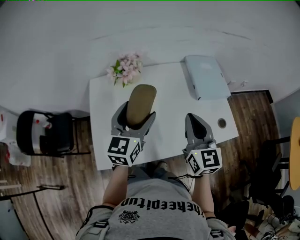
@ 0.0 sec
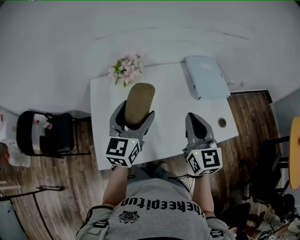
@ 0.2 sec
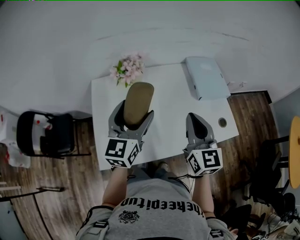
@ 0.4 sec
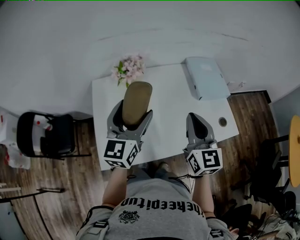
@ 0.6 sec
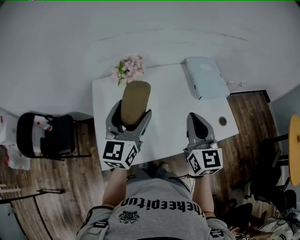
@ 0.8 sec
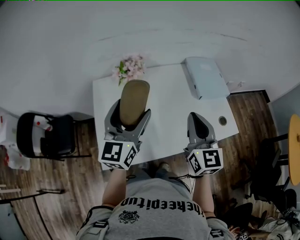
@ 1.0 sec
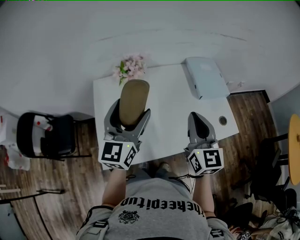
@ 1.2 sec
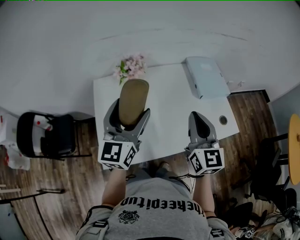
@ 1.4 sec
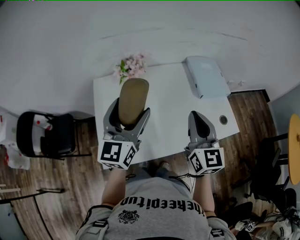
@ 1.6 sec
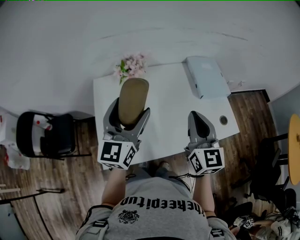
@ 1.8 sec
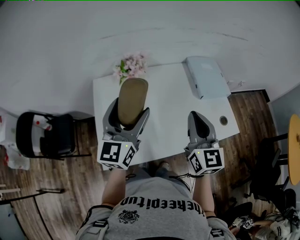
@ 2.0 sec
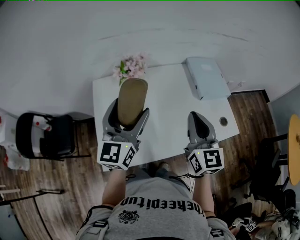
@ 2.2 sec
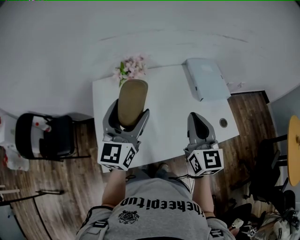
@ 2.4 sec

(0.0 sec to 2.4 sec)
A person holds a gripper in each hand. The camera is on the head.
0.0 sec - 1.2 sec: The left gripper moves upward and to the left, some 5 cm.
1.2 sec - 2.4 sec: The grippers move only a little.

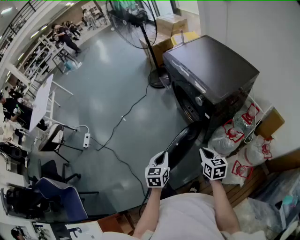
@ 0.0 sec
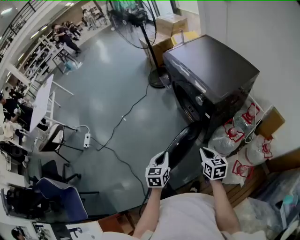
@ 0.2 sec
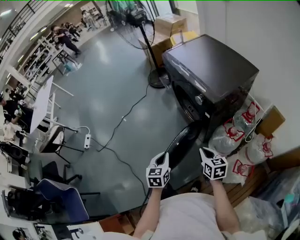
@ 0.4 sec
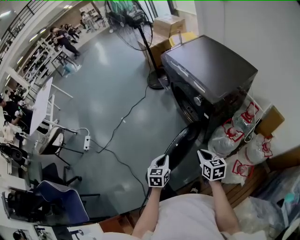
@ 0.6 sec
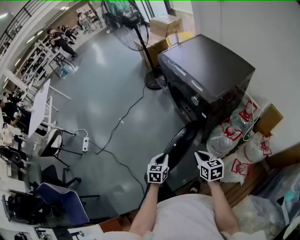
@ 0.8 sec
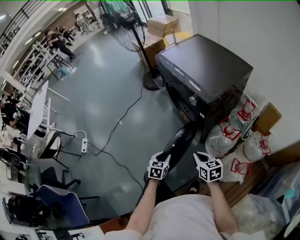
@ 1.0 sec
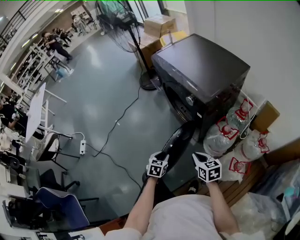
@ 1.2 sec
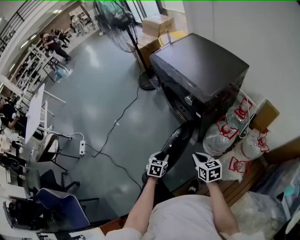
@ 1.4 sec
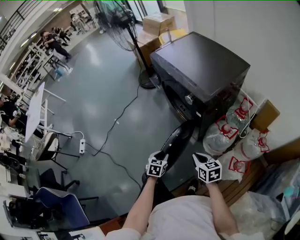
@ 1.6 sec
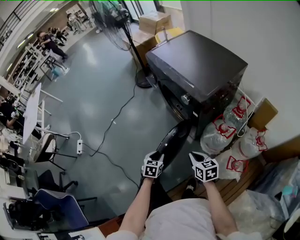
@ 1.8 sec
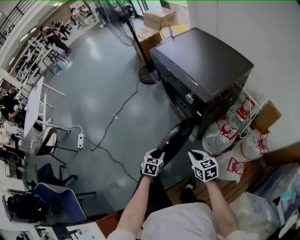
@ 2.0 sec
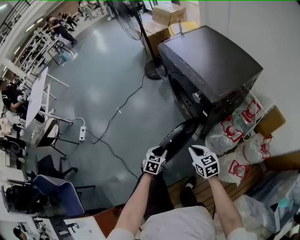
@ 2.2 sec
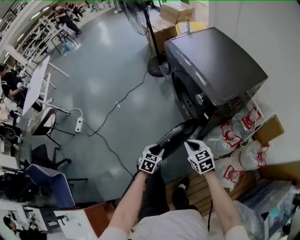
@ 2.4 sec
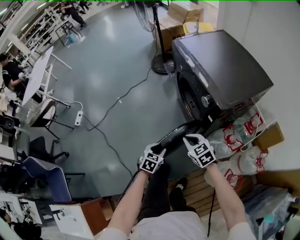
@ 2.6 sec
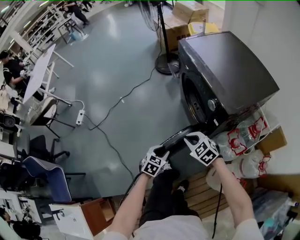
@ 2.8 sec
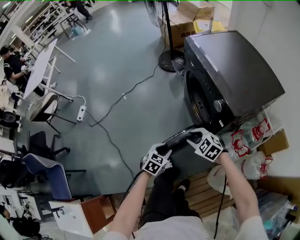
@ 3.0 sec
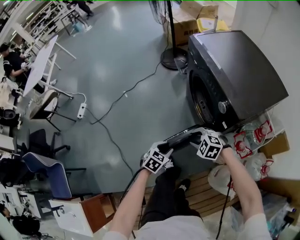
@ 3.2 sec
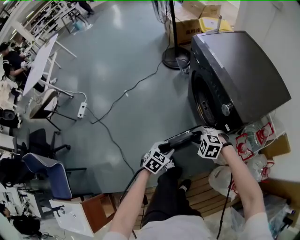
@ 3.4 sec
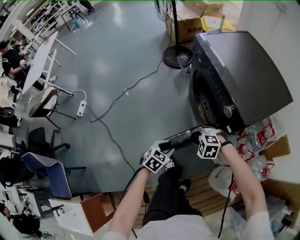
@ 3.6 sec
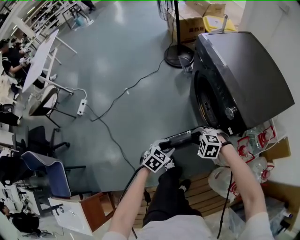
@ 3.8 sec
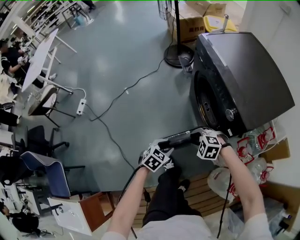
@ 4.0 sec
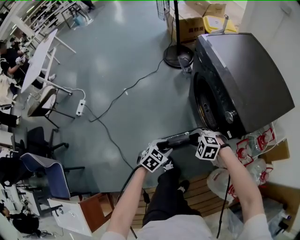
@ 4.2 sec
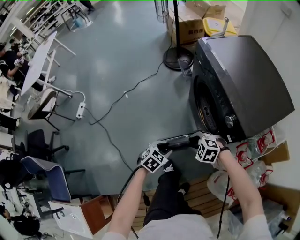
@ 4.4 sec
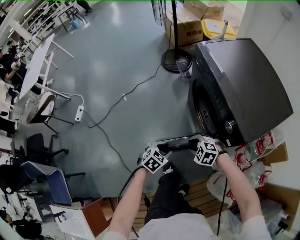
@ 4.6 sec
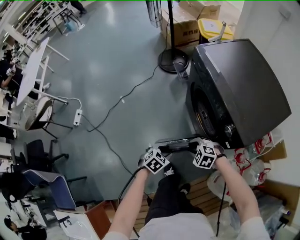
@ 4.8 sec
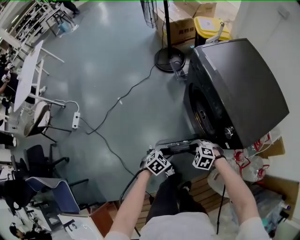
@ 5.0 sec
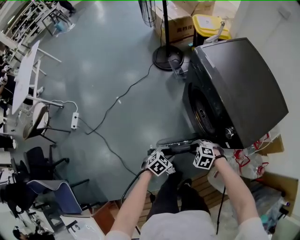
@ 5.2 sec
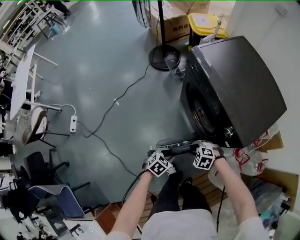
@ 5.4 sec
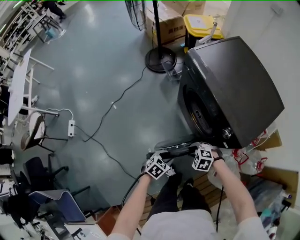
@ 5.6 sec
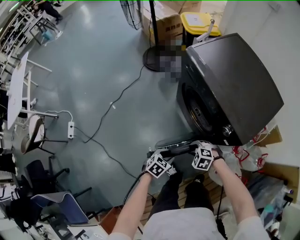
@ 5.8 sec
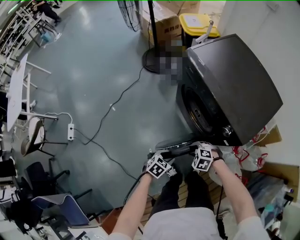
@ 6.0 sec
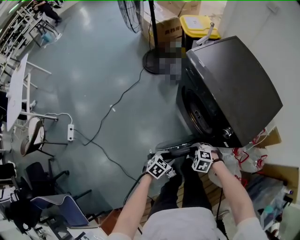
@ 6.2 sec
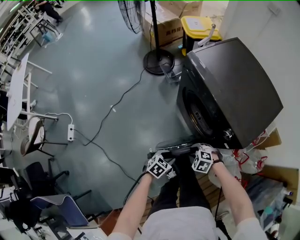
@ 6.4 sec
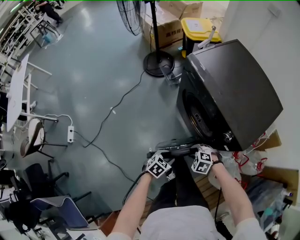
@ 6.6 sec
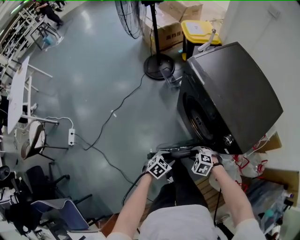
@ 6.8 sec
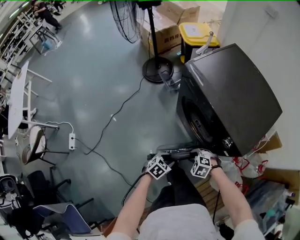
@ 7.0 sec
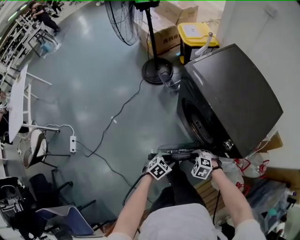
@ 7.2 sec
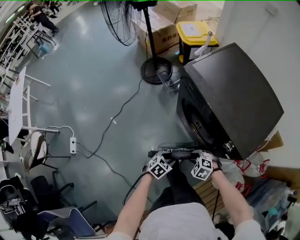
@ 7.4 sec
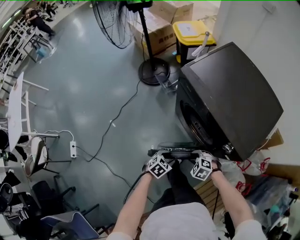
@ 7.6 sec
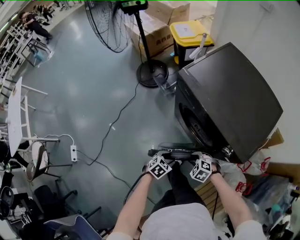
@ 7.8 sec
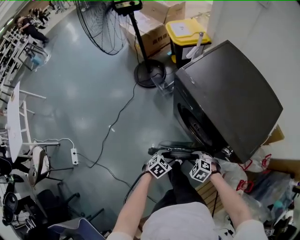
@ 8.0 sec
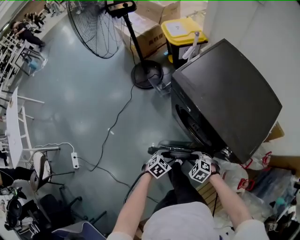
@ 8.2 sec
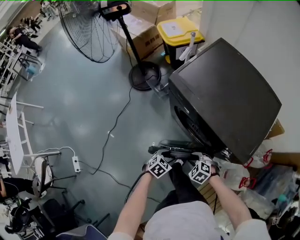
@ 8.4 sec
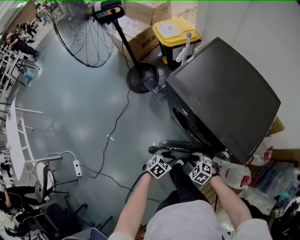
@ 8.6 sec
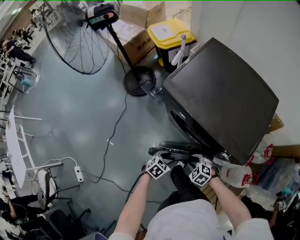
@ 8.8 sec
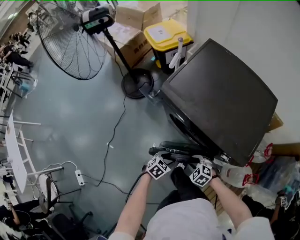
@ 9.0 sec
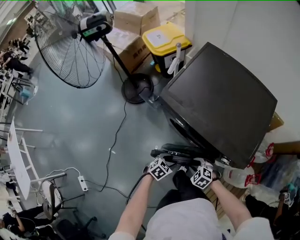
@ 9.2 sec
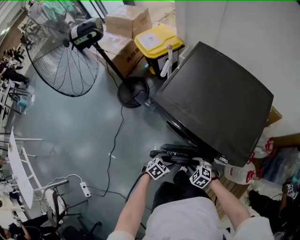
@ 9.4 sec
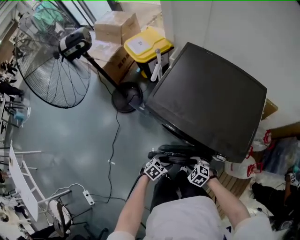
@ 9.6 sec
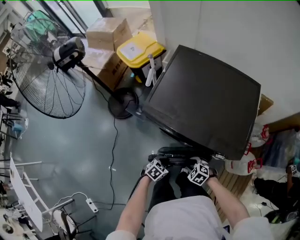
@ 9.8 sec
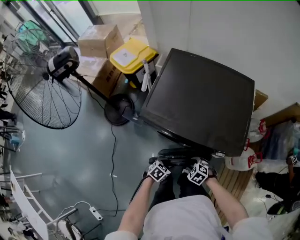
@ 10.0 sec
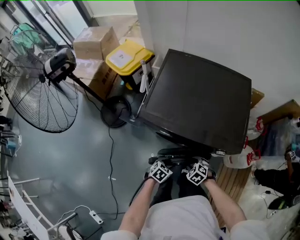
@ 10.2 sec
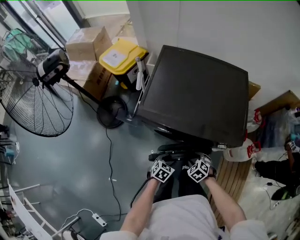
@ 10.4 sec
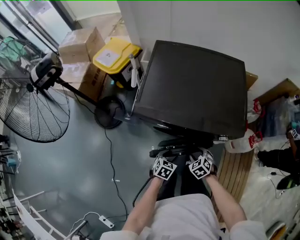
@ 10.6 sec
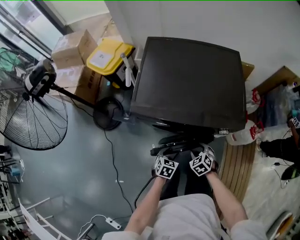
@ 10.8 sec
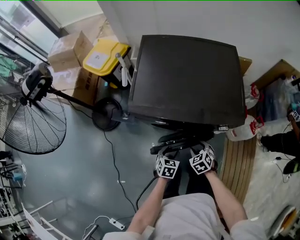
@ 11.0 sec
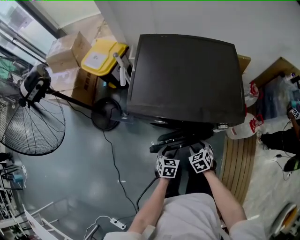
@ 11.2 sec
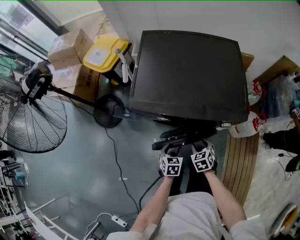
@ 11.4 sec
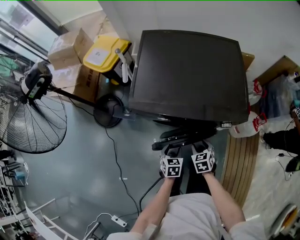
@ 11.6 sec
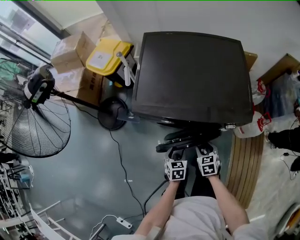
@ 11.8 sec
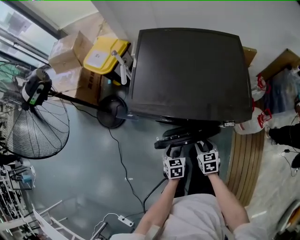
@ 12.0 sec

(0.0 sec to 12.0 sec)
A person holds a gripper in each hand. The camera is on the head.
0.0 sec - 1.6 sec: The left gripper shifts roughly 15 cm downward, turns by about 30 degrees, and opens its fingers.
1.6 sec - 3.0 sec: The right gripper goes approximately 15 cm forward and to the left, rolls counterclockwise, seen from behind, by some 60 degrees, and opens. The left gripper changes place by approximately 5 cm.
3.0 sec - 4.4 sec: The left gripper moves some 10 cm. The right gripper travels downward by some 5 cm, and rotates roughly 20 degrees.
4.4 sec - 6.0 sec: The grippers stay close to where they were, moving slightly.
6.0 sec - 7.6 sec: The right gripper shifts by roughly 10 cm. The left gripper changes place by some 10 cm.
7.6 sec - 9.0 sec: The right gripper shifts by approximately 10 cm, and rotates some 20 degrees, while the left gripper ends up some 10 cm from where it was.
9.0 sec - 10.4 sec: The left gripper moves about 5 cm, while the right gripper changes its angle by some 40 degrees.
10.4 sec - 12.0 sec: The right gripper rotates around the line of its fingers by about 40 degrees, clockwise from behind. Meanwhile the left gripper swivels approximately 30 degrees.

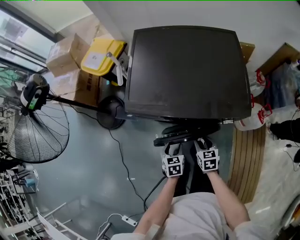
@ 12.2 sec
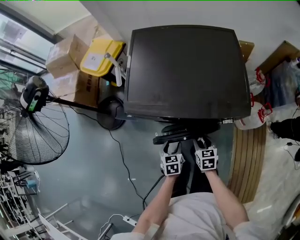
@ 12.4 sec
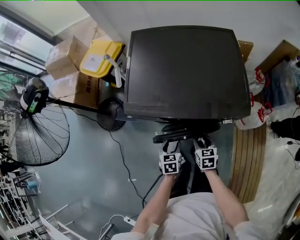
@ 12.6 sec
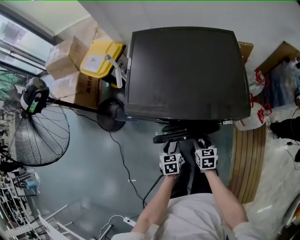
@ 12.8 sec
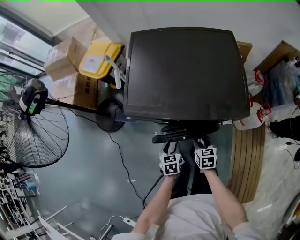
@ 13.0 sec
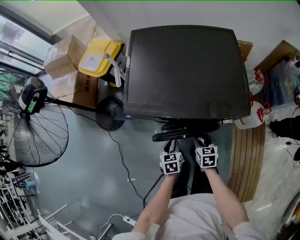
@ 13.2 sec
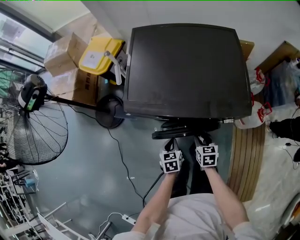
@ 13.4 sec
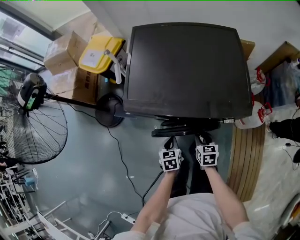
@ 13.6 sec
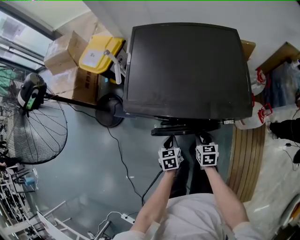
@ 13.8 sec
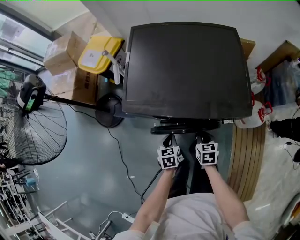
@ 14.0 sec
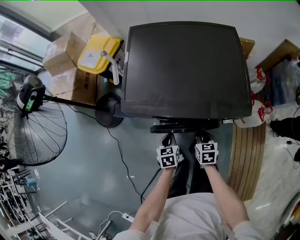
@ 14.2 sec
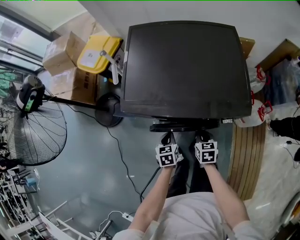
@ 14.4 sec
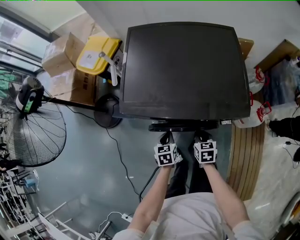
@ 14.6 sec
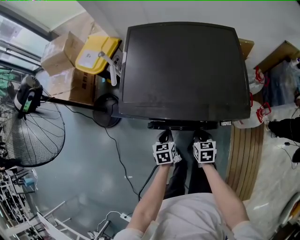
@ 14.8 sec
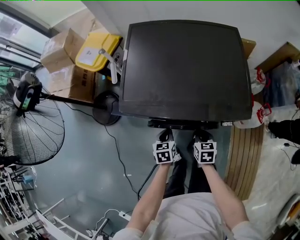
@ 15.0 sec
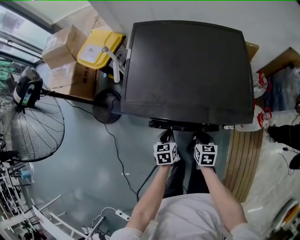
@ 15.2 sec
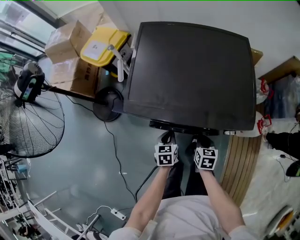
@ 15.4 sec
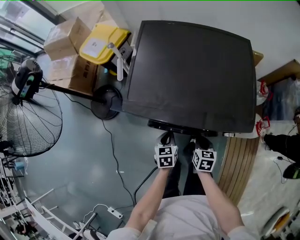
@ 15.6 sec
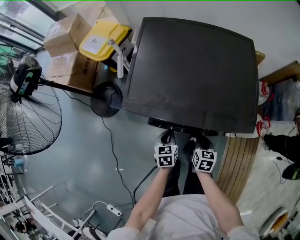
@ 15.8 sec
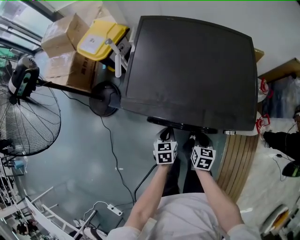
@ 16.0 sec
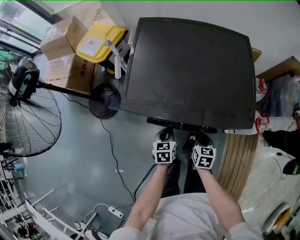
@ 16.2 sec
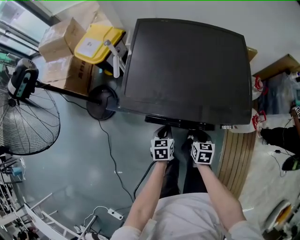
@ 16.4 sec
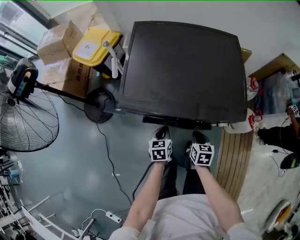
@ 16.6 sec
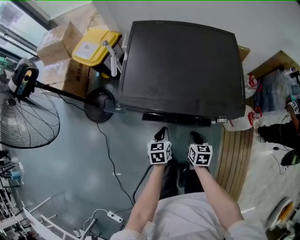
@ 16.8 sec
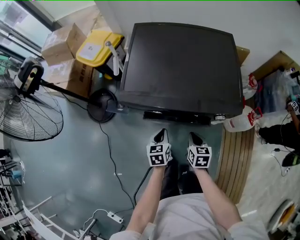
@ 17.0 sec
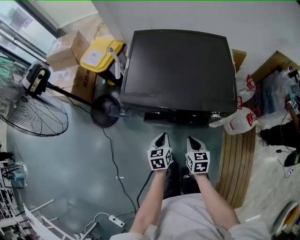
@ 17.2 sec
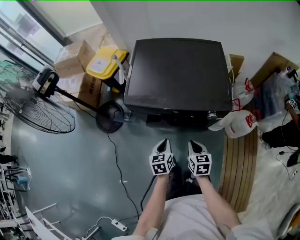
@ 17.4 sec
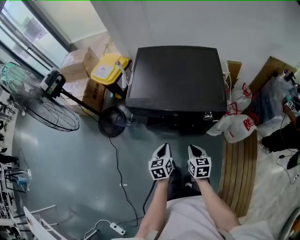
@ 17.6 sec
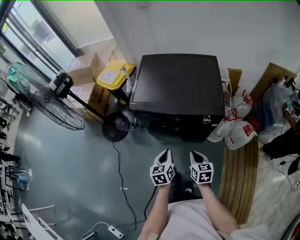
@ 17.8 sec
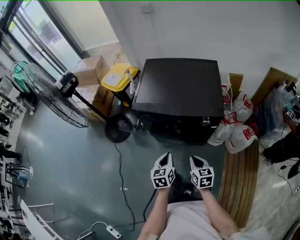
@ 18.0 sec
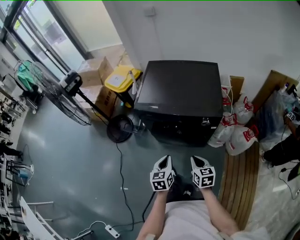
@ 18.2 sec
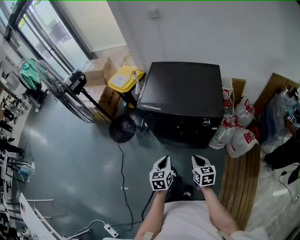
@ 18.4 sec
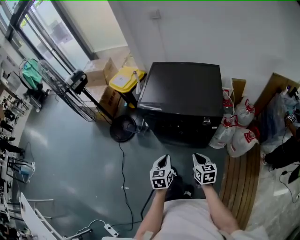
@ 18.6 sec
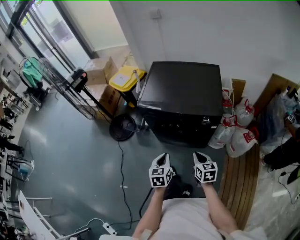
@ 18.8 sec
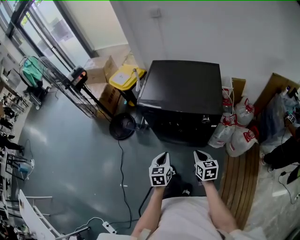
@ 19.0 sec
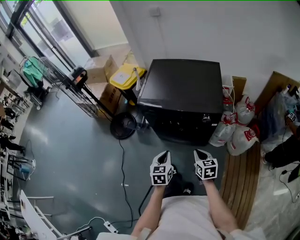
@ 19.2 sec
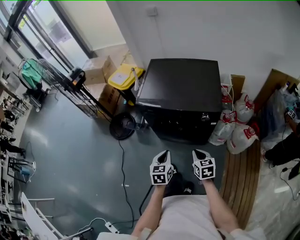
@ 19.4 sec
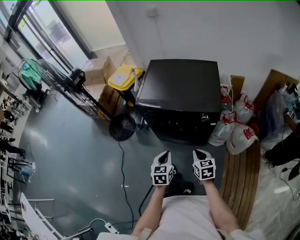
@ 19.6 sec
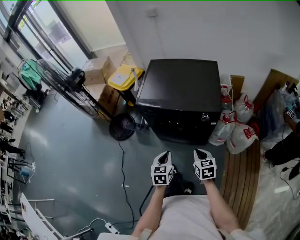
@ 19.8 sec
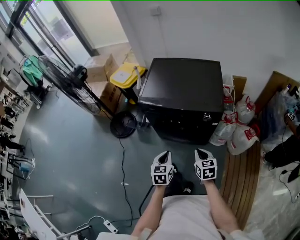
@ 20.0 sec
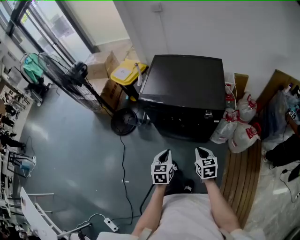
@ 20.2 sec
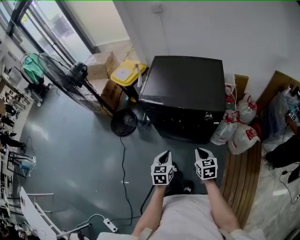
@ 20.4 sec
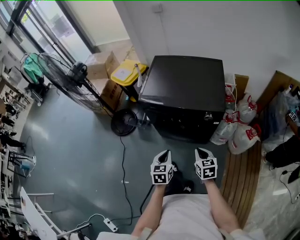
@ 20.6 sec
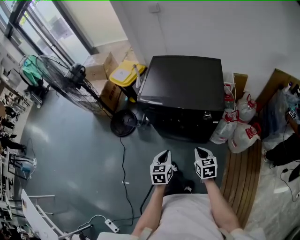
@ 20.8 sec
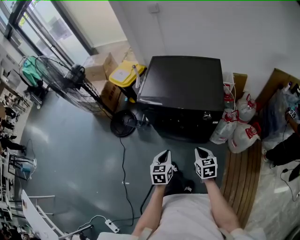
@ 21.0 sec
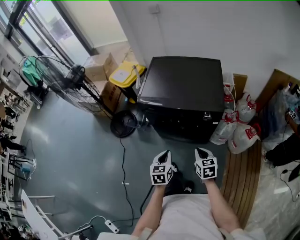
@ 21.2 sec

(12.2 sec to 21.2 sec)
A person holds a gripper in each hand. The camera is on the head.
12.2 sec - 13.8 sec: The left gripper closes its fingers.
13.8 sec - 15.2 sec: The right gripper closes up.
15.2 sec - 16.6 sec: The grippers move only a little.
16.6 sec - 18.2 sec: The grippers both shift backward and upward by about 25 cm. The right gripper turns by about 20 degrees.
18.2 sec - 19.8 sec: The grippers make only small movements.
19.8 sec - 21.2 sec: Both grippers stay about where they are.
